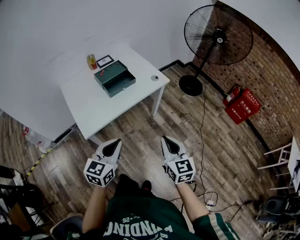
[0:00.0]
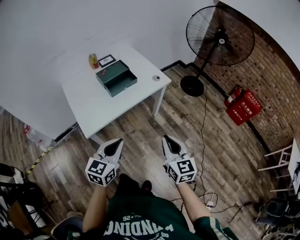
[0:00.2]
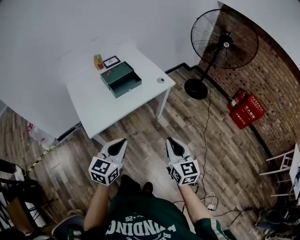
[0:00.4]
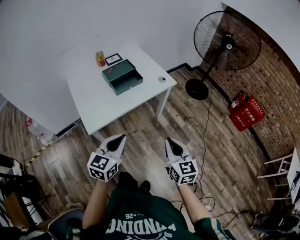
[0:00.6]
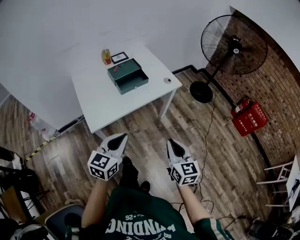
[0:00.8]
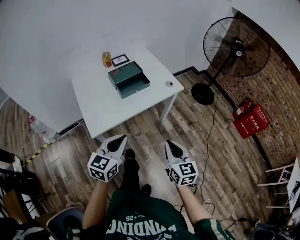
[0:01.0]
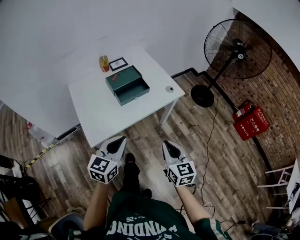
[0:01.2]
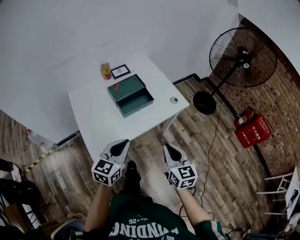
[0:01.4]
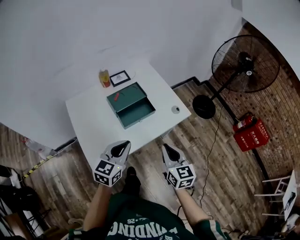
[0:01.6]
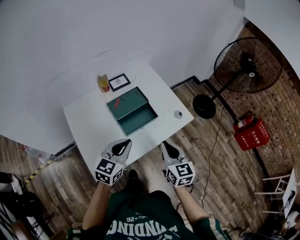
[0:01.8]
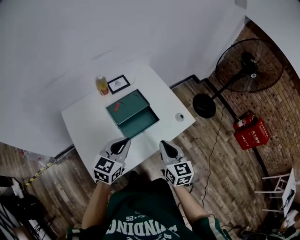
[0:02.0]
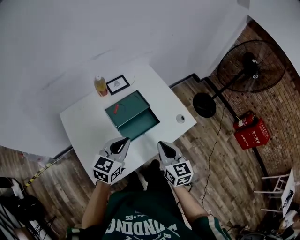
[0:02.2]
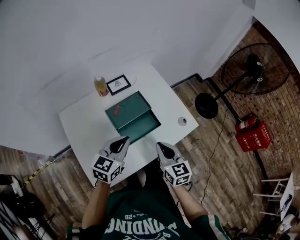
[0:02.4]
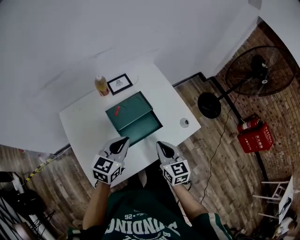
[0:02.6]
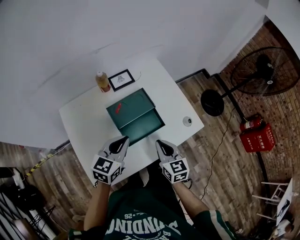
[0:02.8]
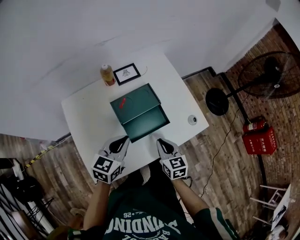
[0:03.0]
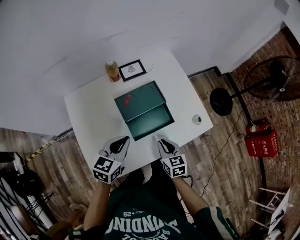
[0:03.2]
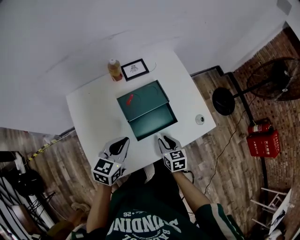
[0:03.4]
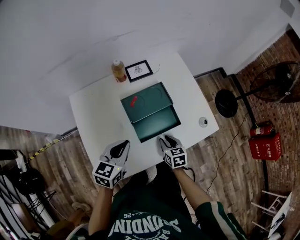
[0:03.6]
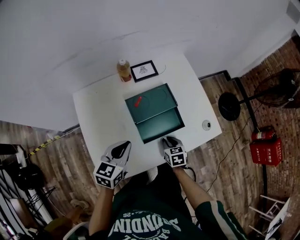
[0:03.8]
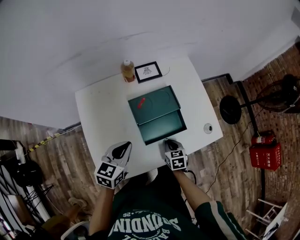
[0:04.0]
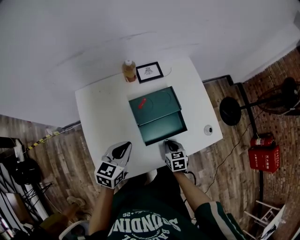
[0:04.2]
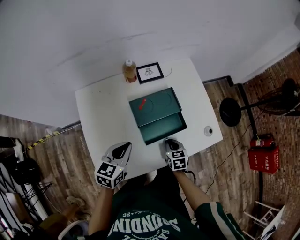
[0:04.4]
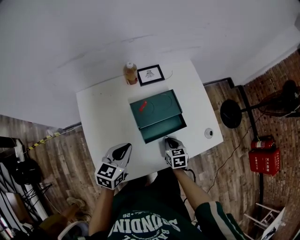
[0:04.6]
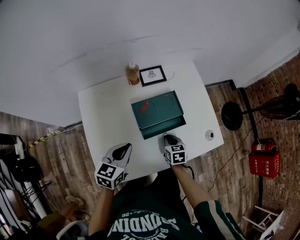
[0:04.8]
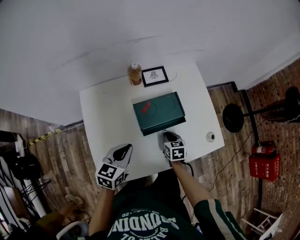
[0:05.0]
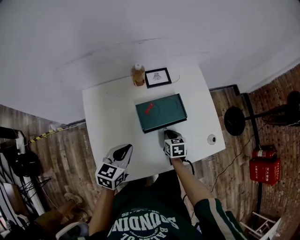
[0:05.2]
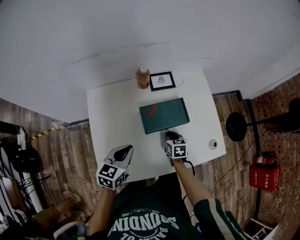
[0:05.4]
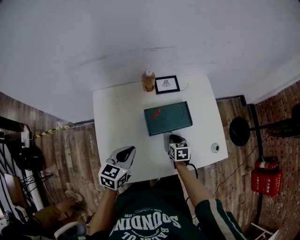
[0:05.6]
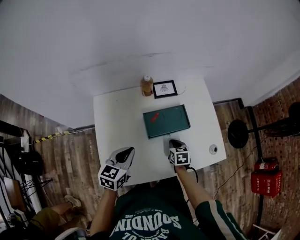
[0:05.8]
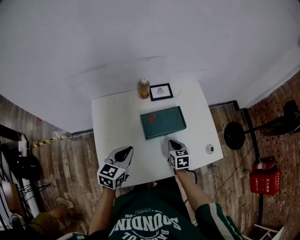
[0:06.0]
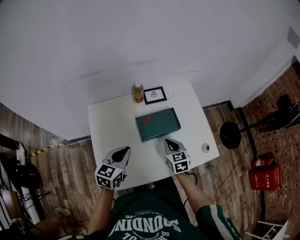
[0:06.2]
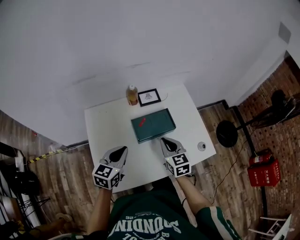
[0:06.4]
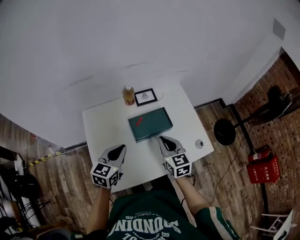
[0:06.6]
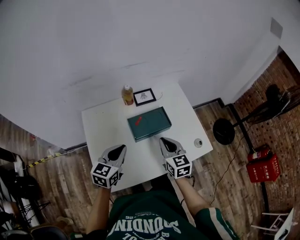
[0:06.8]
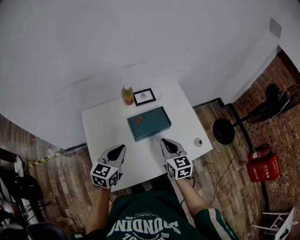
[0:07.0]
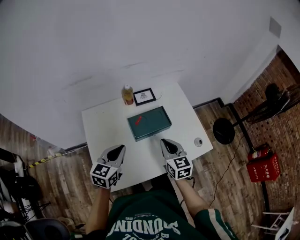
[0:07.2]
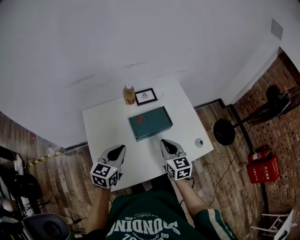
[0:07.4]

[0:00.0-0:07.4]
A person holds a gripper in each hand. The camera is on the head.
0:00.0 to 0:01.4: The left gripper goes approximately 15 cm forward, while the right gripper heads forward and to the left, covering approximately 20 cm.
0:01.4 to 0:03.0: The right gripper heads forward, downward and to the left, covering roughly 30 cm. Meanwhile the left gripper heads forward, covering some 25 cm.
0:03.0 to 0:04.4: The left gripper shifts some 5 cm to the left; the right gripper shifts roughly 10 cm downward.
0:04.4 to 0:06.0: The right gripper travels forward and upward by about 10 cm.
0:06.0 to 0:07.4: The right gripper is displaced upward by roughly 15 cm, and swivels about 20 degrees.

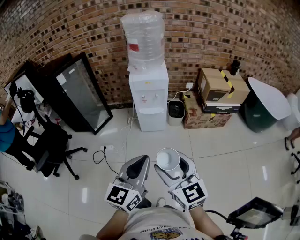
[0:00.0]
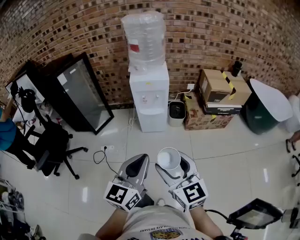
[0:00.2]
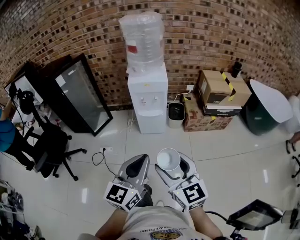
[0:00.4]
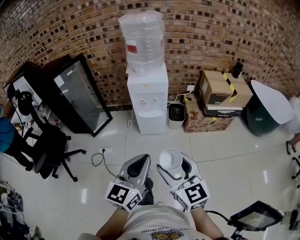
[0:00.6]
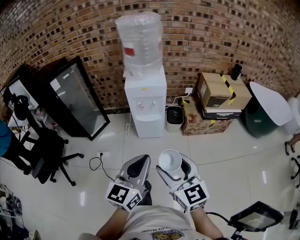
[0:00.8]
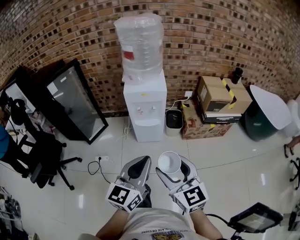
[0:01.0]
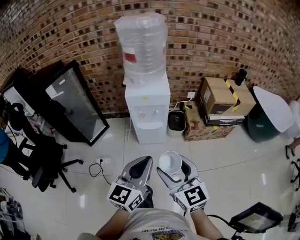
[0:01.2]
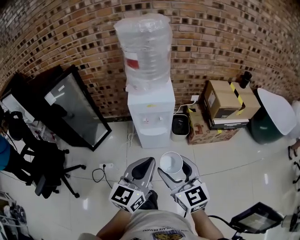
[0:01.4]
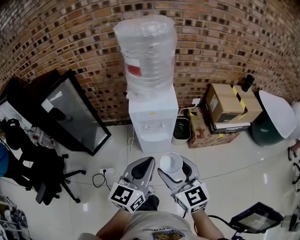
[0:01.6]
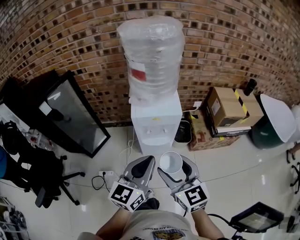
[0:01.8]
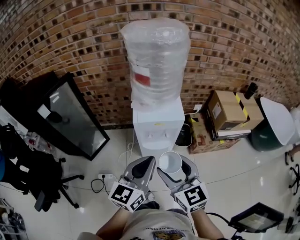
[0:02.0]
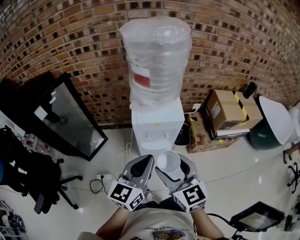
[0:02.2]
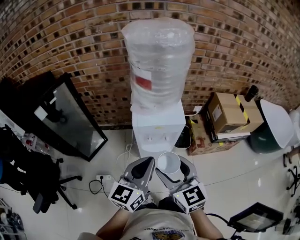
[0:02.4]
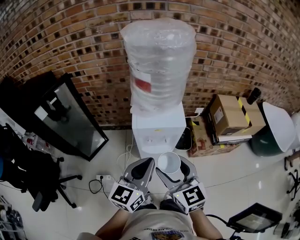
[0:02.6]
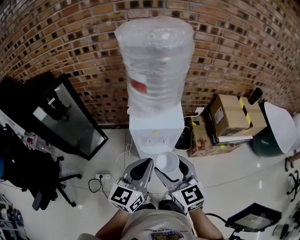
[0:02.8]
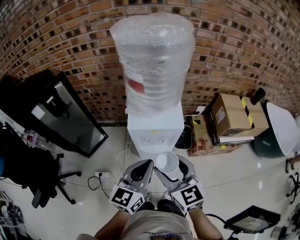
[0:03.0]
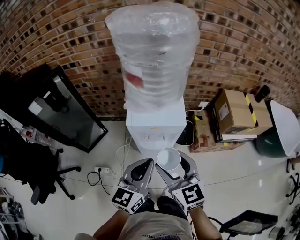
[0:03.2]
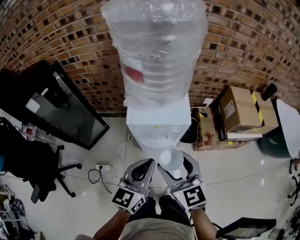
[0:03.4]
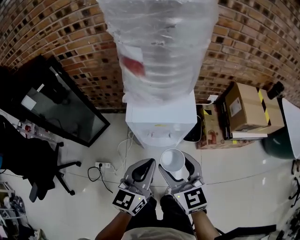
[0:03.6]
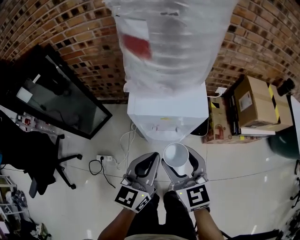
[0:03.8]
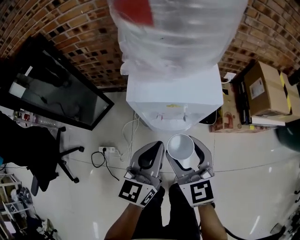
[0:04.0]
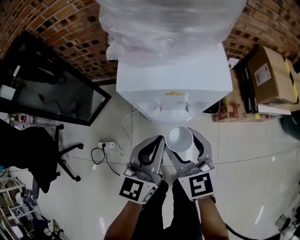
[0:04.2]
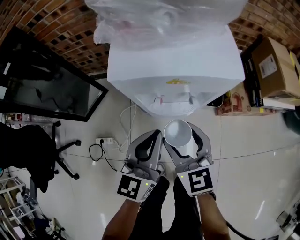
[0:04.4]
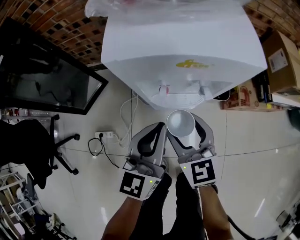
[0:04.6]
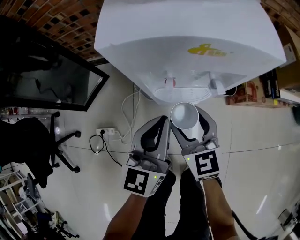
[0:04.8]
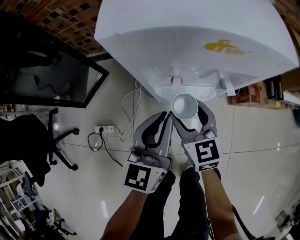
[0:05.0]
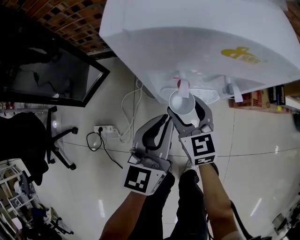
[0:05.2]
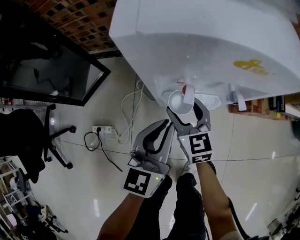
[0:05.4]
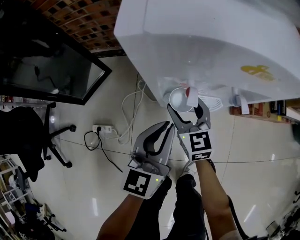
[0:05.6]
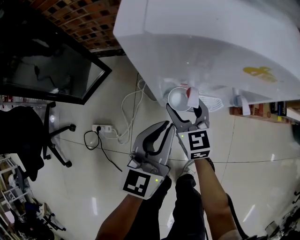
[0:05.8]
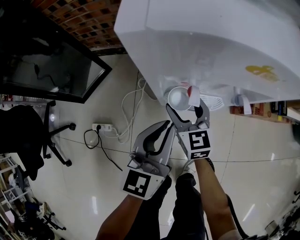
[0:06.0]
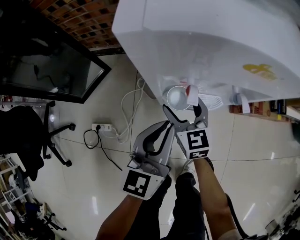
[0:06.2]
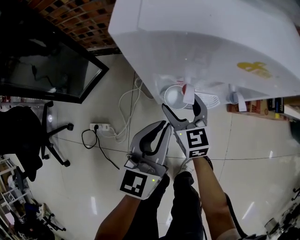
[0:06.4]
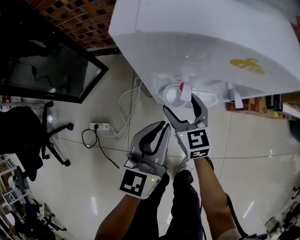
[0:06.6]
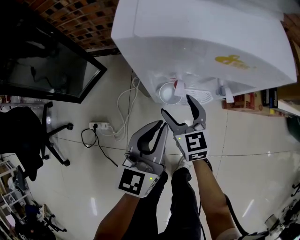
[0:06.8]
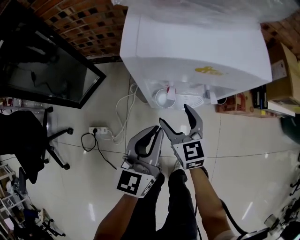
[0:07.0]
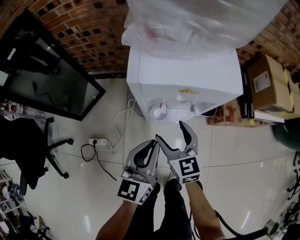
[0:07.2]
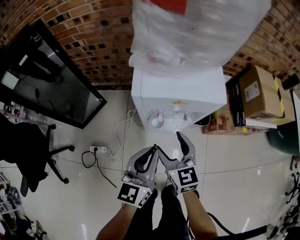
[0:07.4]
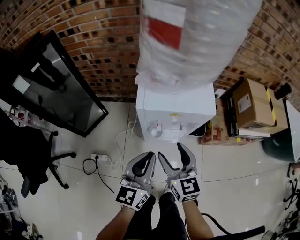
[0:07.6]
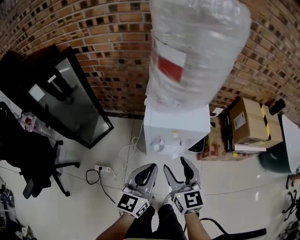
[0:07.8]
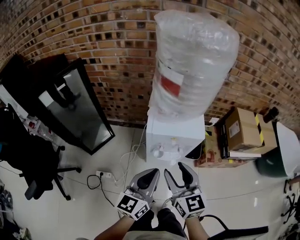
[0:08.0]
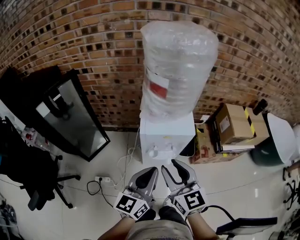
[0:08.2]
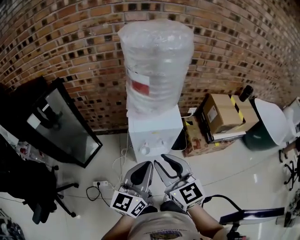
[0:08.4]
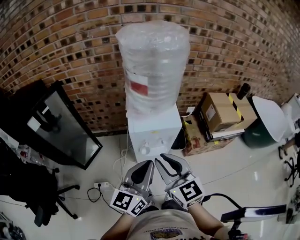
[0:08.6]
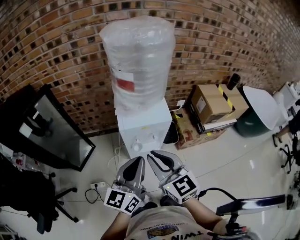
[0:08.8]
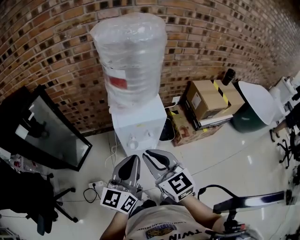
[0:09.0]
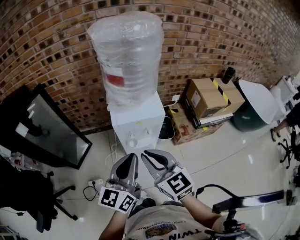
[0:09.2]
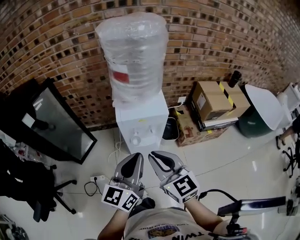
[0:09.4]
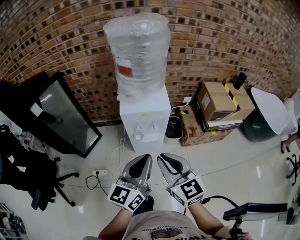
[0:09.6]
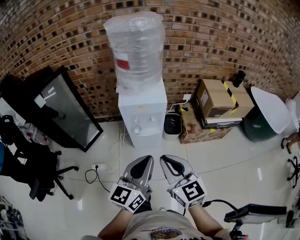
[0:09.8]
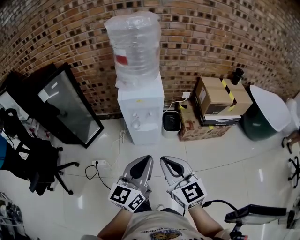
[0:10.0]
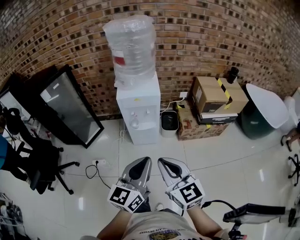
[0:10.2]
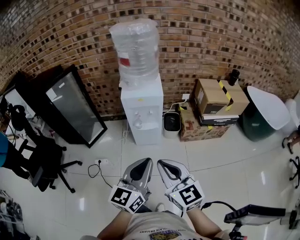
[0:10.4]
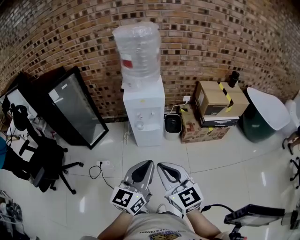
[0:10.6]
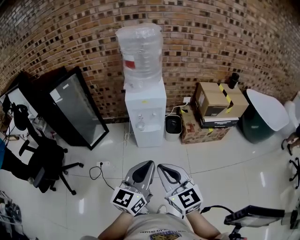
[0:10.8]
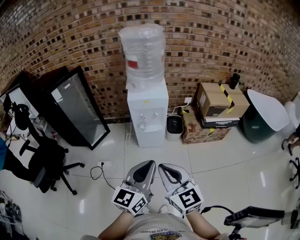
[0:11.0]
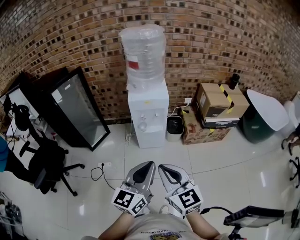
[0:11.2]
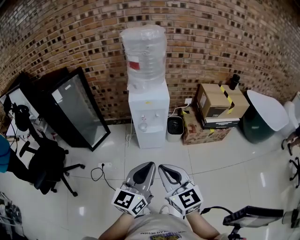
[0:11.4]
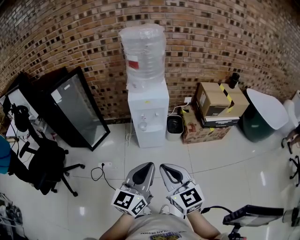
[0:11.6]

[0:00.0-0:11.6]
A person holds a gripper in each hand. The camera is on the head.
0:00.0 to 0:01.4: Both grippers move forward, approximately 20 cm.
0:01.4 to 0:02.8: The grippers both shift forward by roughly 20 cm.
0:02.8 to 0:04.4: The two grippers go some 25 cm downward.
0:04.4 to 0:05.8: The right gripper goes some 20 cm downward and forward, while the left gripper is displaced downward by some 10 cm.
0:05.8 to 0:07.2: The two grippers go roughly 15 cm upward and backward.
0:07.2 to 0:08.8: The grippers both shift upward by approximately 30 cm. The right gripper closes up.
0:08.8 to 0:10.2: Both grippers move backward and to the right, some 30 cm.
0:10.2 to 0:11.6: Both grippers travel together backward and to the left, about 10 cm.

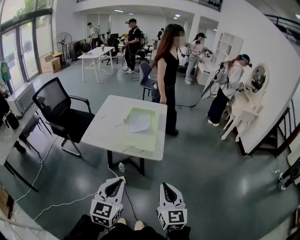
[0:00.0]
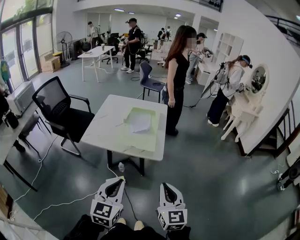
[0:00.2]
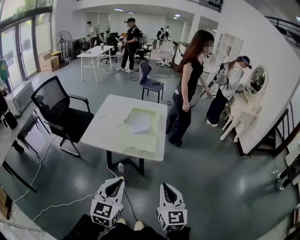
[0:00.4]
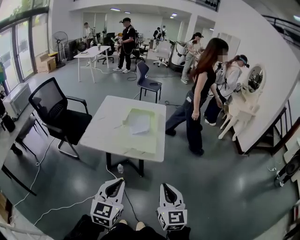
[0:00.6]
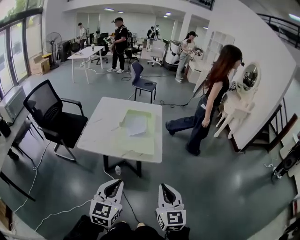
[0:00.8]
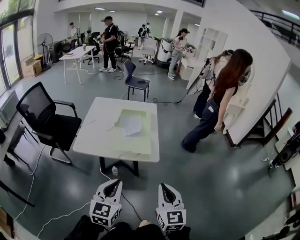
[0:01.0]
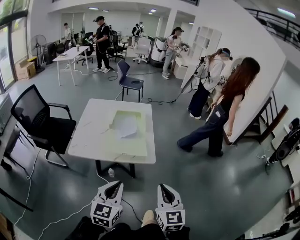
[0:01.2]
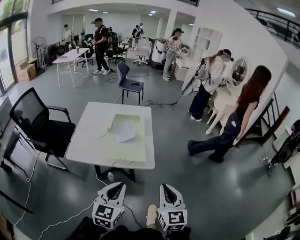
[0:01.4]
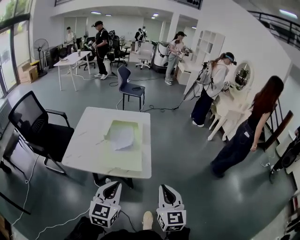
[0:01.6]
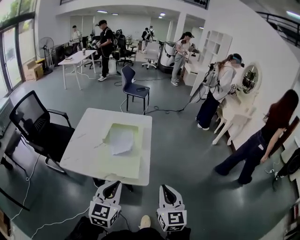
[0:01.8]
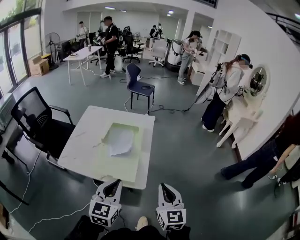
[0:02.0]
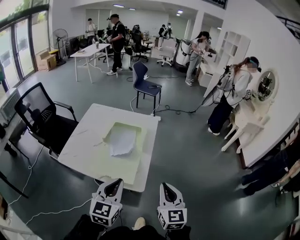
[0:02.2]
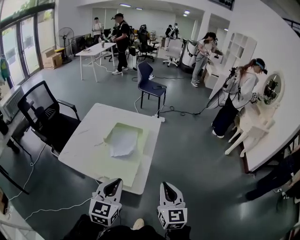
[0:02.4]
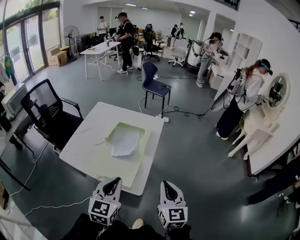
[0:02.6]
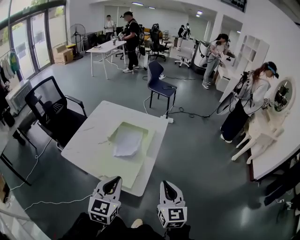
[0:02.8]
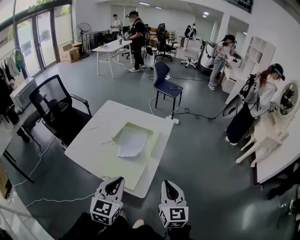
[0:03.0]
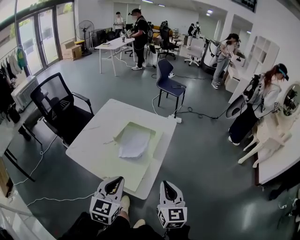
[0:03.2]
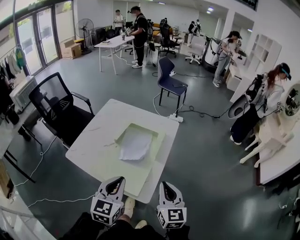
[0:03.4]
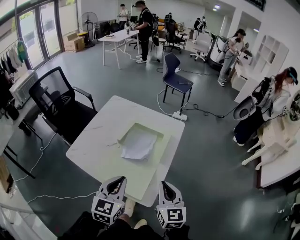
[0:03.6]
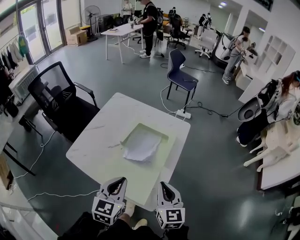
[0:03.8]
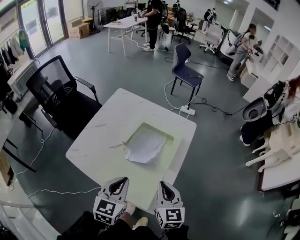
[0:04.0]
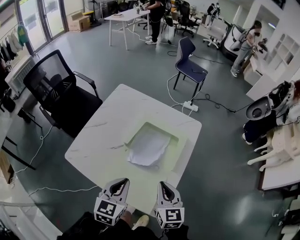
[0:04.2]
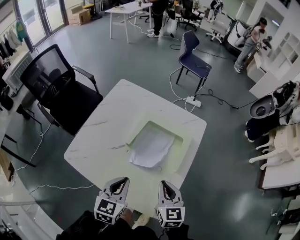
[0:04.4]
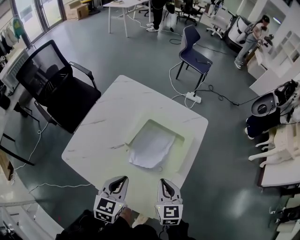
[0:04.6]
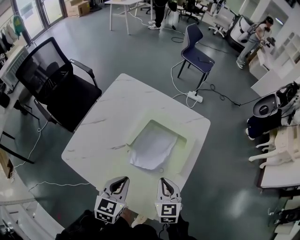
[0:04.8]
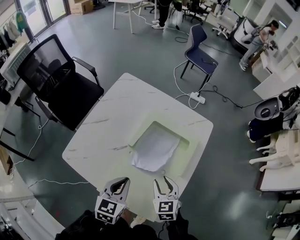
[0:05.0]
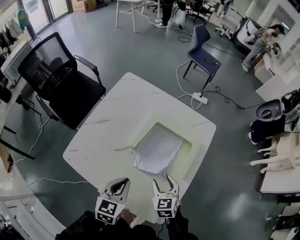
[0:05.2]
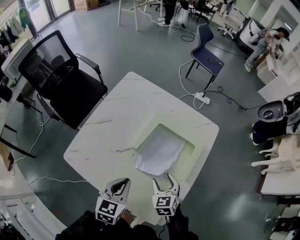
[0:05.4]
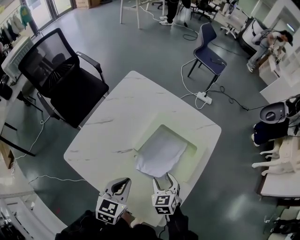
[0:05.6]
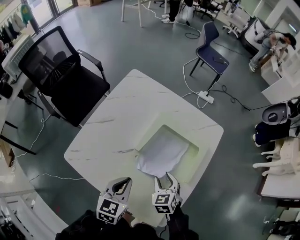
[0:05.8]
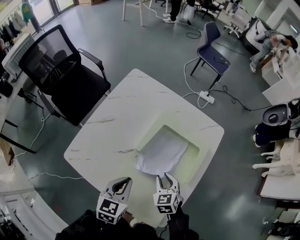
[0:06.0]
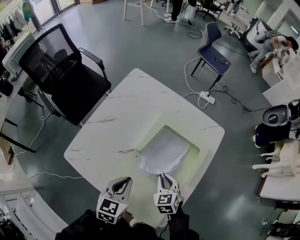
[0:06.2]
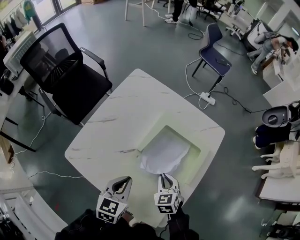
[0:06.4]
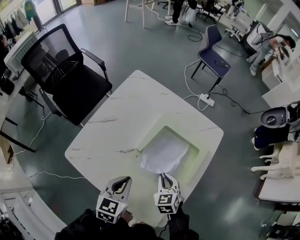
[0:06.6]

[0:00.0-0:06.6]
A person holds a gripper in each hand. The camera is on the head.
0:00.0 to 0:01.6: The two grippers go some 20 cm forward.
0:01.6 to 0:03.2: The right gripper heads forward, covering some 30 cm, and swivels some 20 degrees. The left gripper heads forward and to the right, covering some 25 cm, and turns by approximately 20 degrees.
0:03.2 to 0:05.0: The two grippers go roughly 40 cm forward, downward and to the left. The right gripper turns by some 30 degrees, and opens, while the left gripper turns by some 20 degrees.
0:05.0 to 0:06.6: The left gripper shifts by approximately 5 cm, while the right gripper moves downward and forward, roughly 10 cm, and closes.
